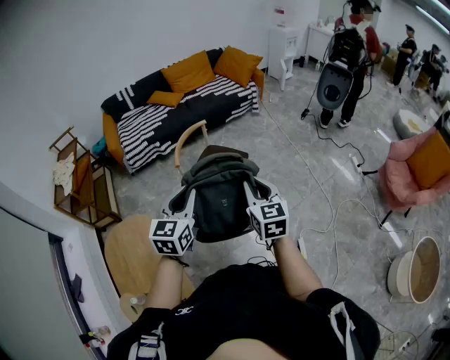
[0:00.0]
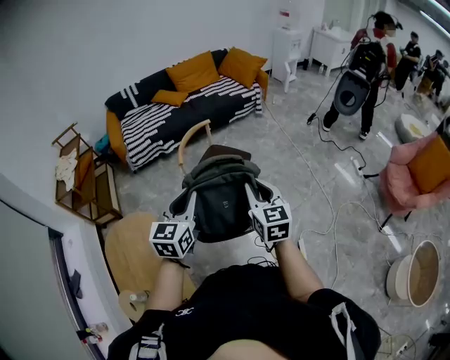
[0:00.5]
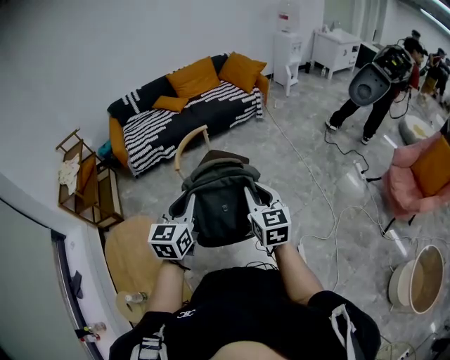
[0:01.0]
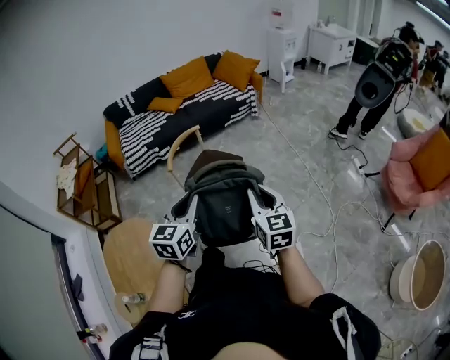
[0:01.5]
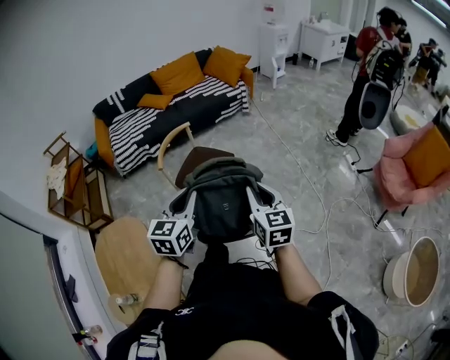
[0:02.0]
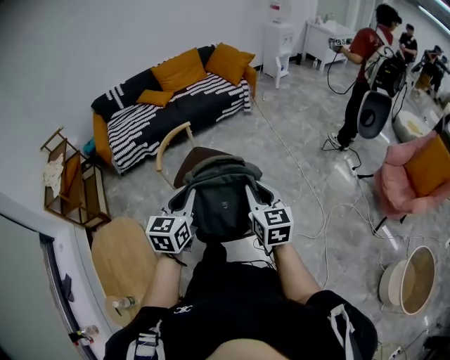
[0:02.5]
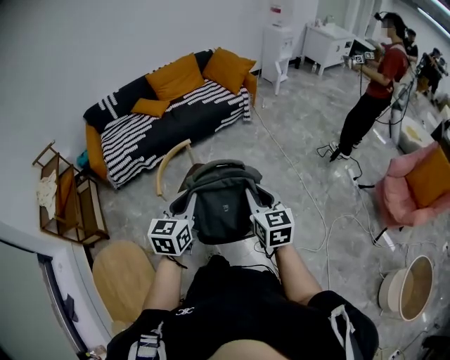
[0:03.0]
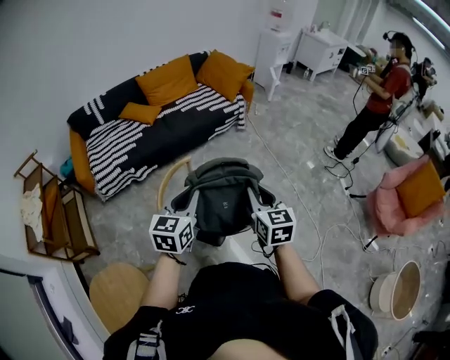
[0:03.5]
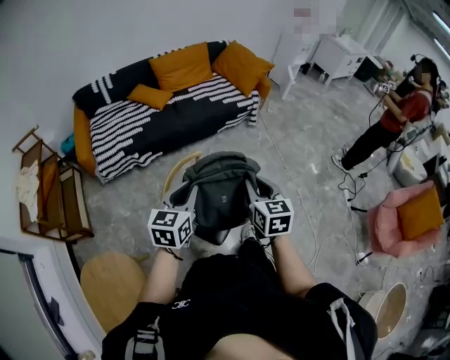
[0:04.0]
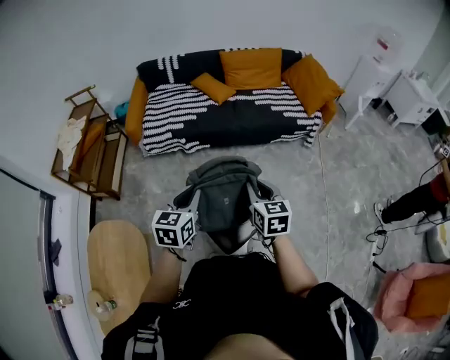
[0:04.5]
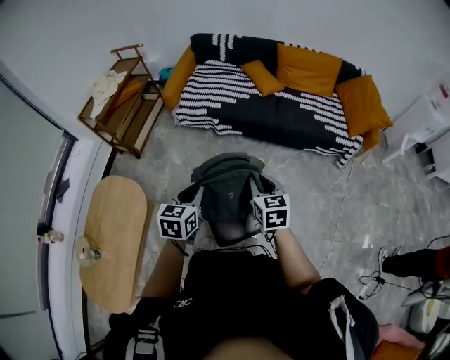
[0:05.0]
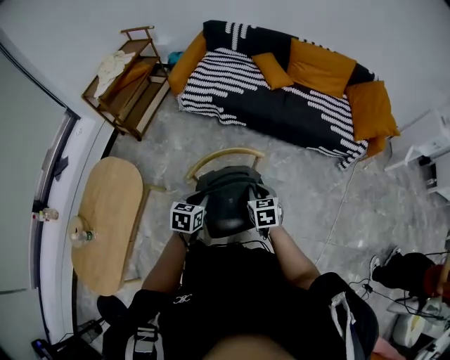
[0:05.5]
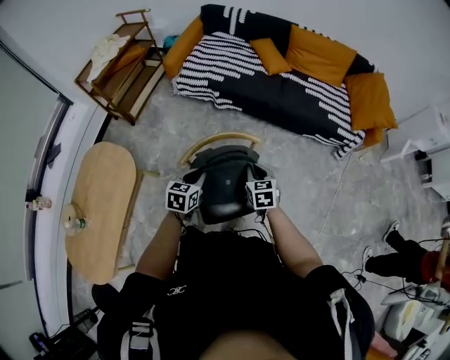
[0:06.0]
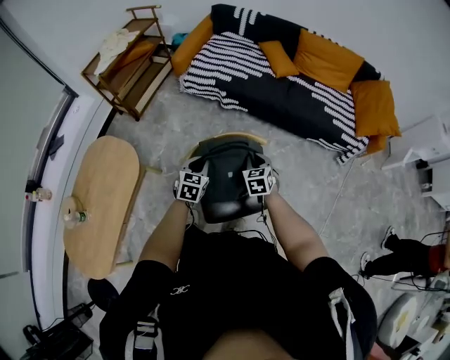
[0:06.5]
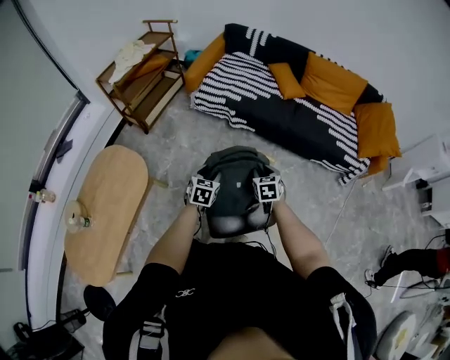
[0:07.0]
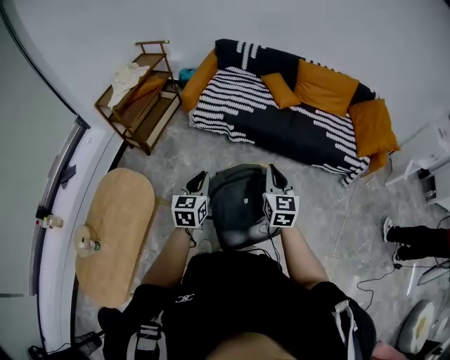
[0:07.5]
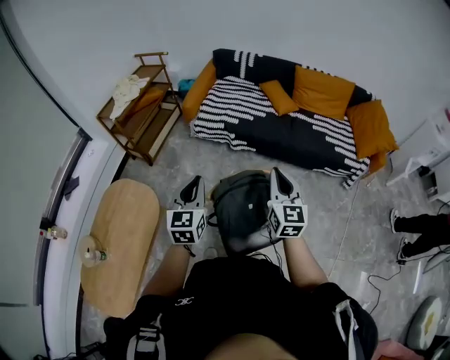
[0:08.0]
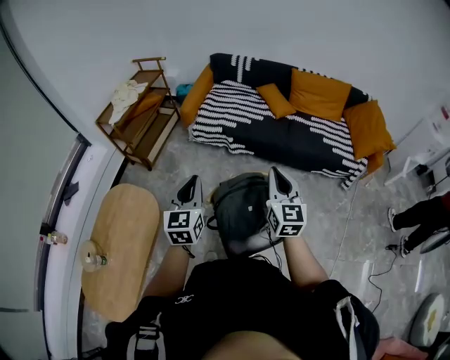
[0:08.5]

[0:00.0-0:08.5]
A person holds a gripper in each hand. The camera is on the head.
0:00.0 to 0:02.0: The grippers both shift to the right by approximately 15 cm.
0:02.0 to 0:04.0: The two grippers travel together, forward and to the left, some 50 cm.
0:04.0 to 0:06.5: The two grippers go roughly 25 cm downward. The right gripper rotates some 50 degrees. The left gripper changes its angle by approximately 50 degrees.
0:06.5 to 0:08.5: Both grippers travel together upward, approximately 30 cm. The left gripper turns by some 30 degrees, and opens and closes again. Meanwhile the right gripper angles its fingers upward, by approximately 40 degrees, and opens and closes again.

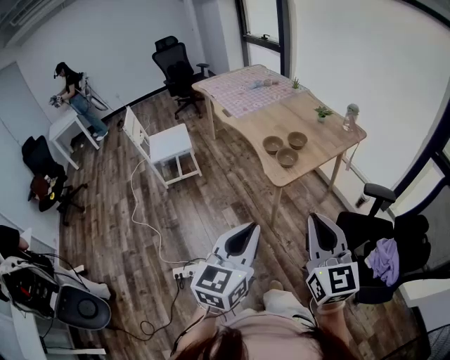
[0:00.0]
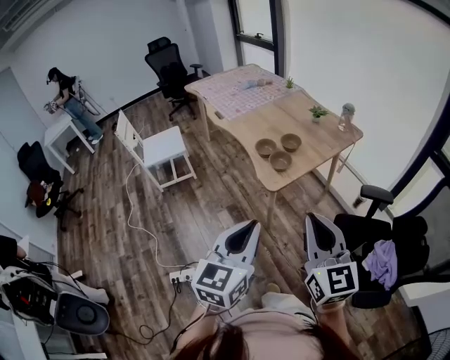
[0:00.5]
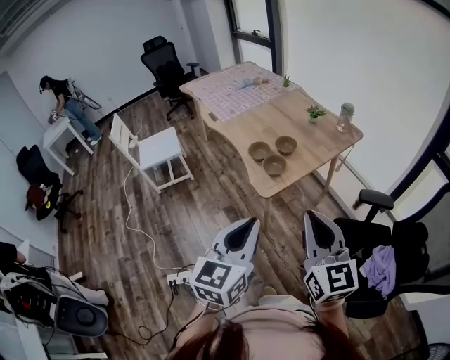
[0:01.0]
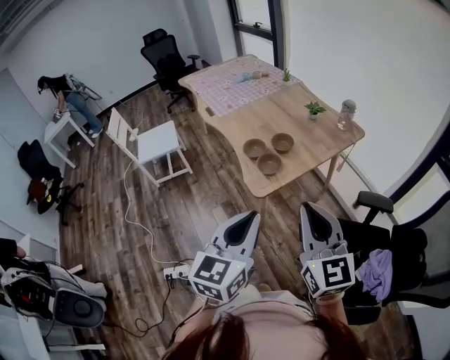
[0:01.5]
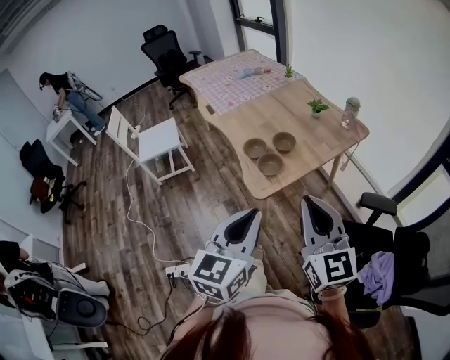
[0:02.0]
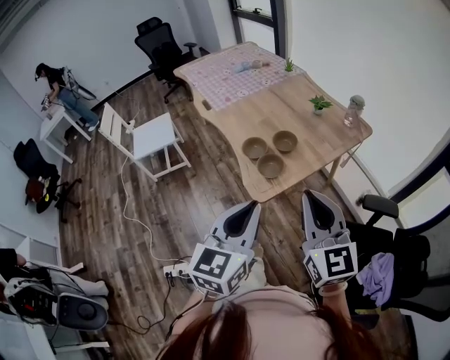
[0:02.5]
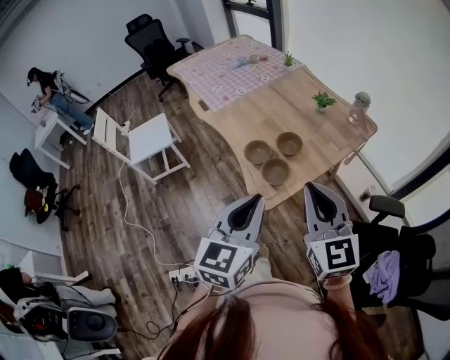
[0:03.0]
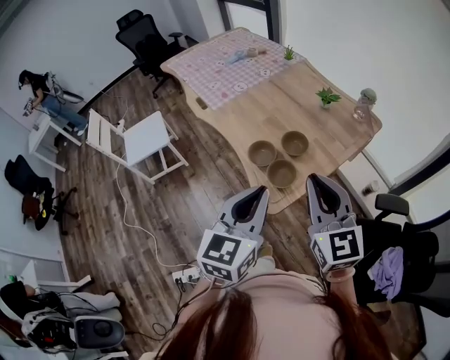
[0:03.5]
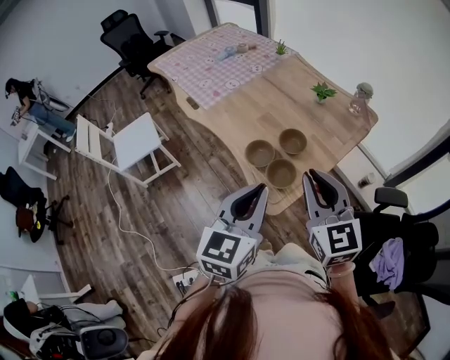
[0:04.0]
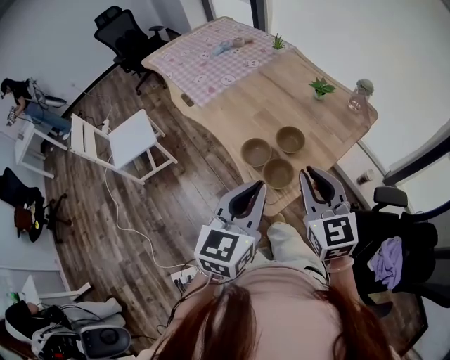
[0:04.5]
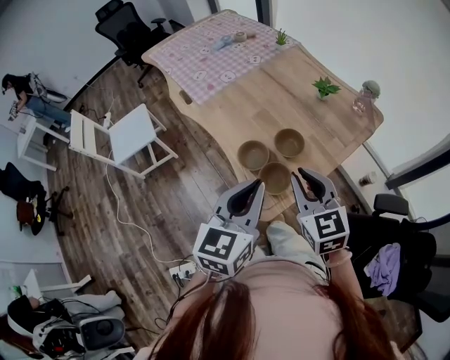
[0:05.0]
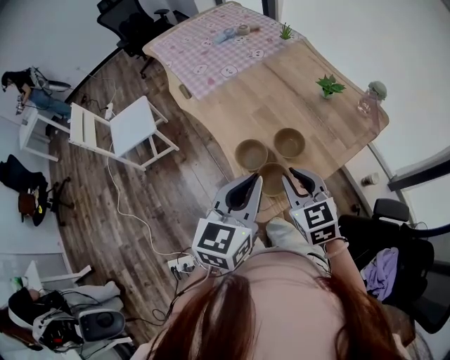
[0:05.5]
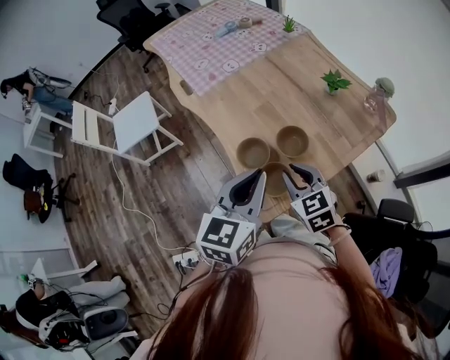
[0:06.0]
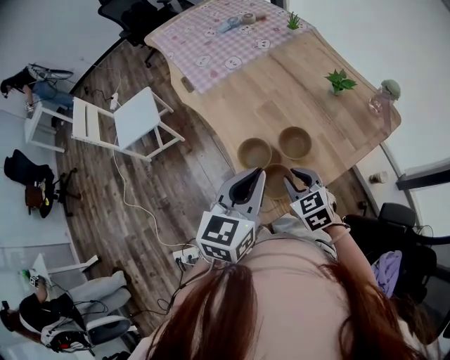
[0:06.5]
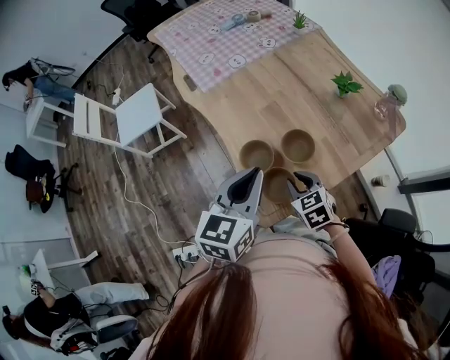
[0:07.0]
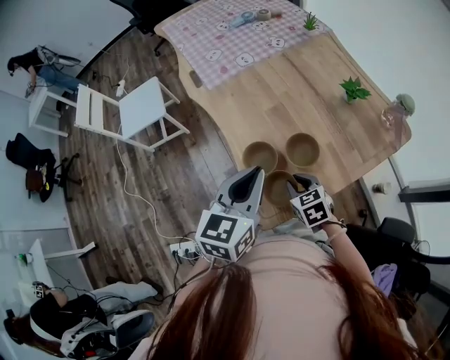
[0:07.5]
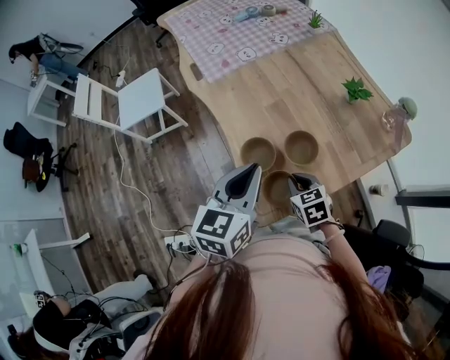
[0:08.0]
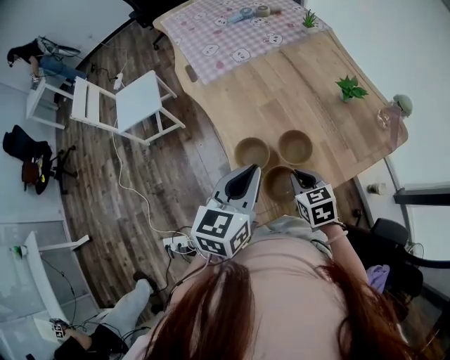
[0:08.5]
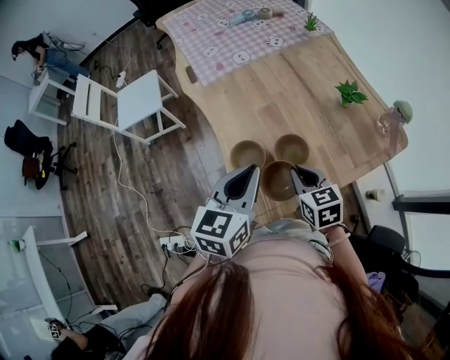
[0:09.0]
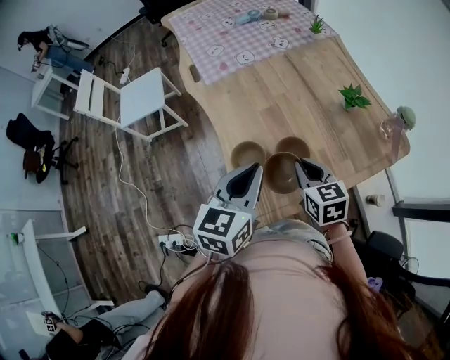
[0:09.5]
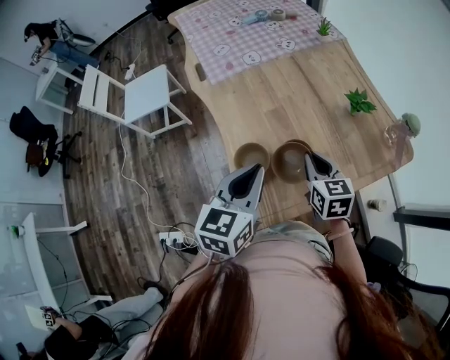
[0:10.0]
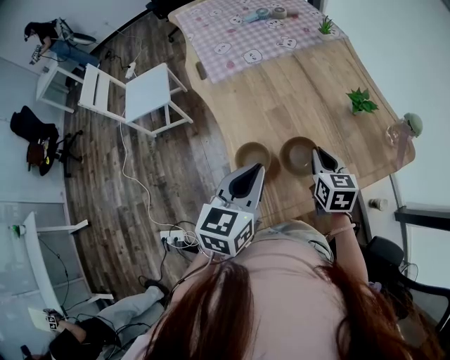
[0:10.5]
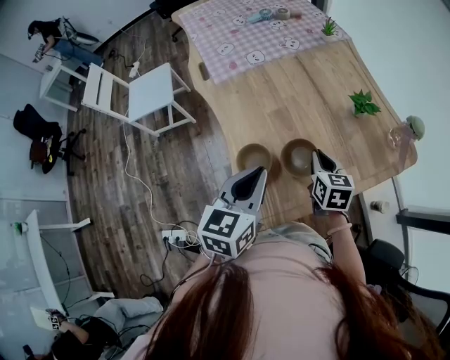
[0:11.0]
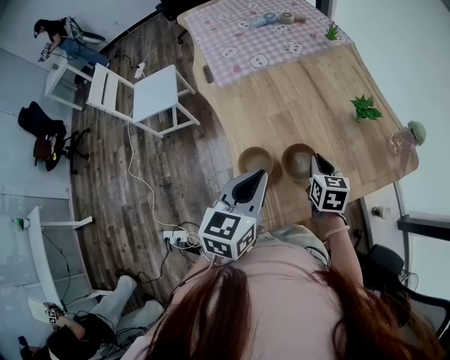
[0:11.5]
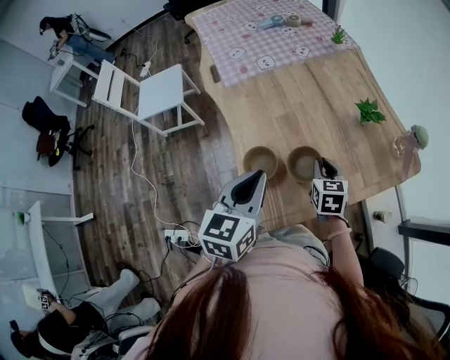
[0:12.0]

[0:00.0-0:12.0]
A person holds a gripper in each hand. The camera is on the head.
0:00.0 to 0:02.0: The grippers both shift forward and to the right by approximately 20 cm.
0:02.0 to 0:04.0: The right gripper is displaced forward and to the left by approximately 25 cm. The left gripper goes about 20 cm forward.
0:04.0 to 0:06.0: The left gripper shifts about 15 cm forward and downward. The right gripper is displaced downward and forward by approximately 20 cm, and rotates some 30 degrees.
0:06.0 to 0:08.0: The right gripper moves downward, approximately 10 cm. The left gripper heads forward, covering about 5 cm.
0:08.0 to 0:10.0: The right gripper is displaced upward, forward and to the right by approximately 15 cm, and changes its angle by approximately 20 degrees.
0:10.0 to 0:12.0: The right gripper shifts roughly 5 cm downward.

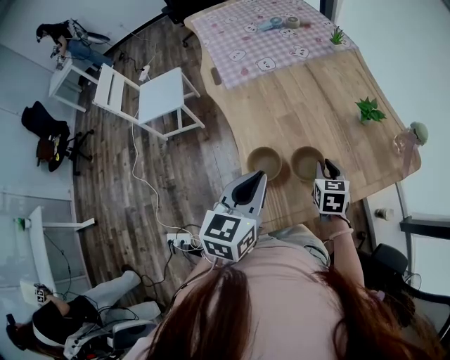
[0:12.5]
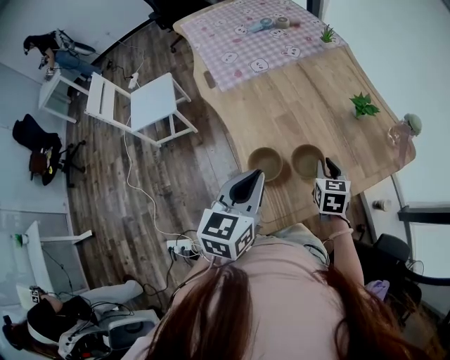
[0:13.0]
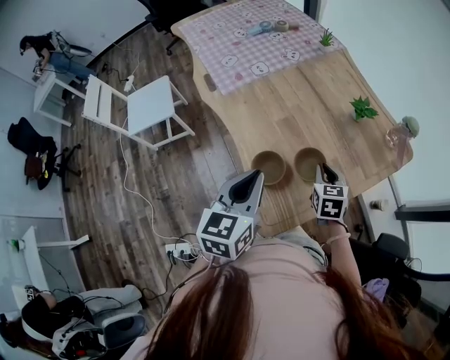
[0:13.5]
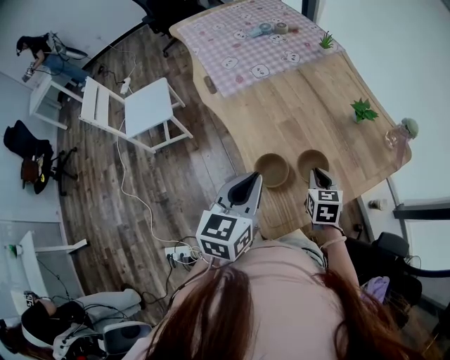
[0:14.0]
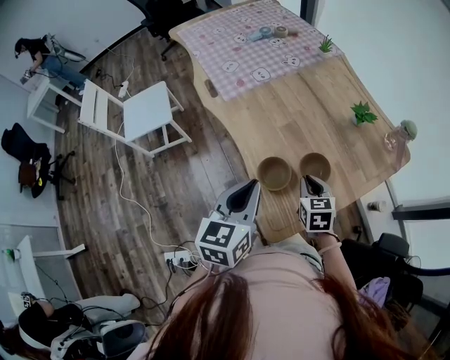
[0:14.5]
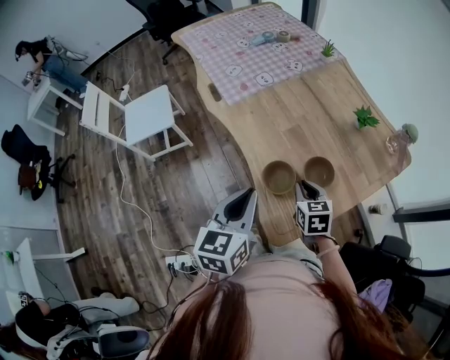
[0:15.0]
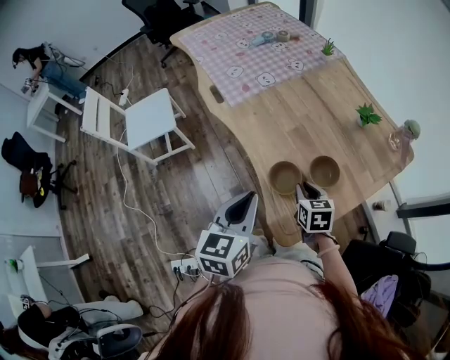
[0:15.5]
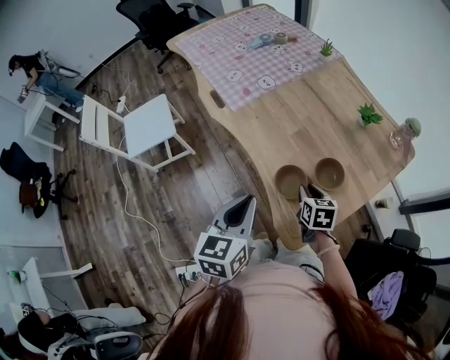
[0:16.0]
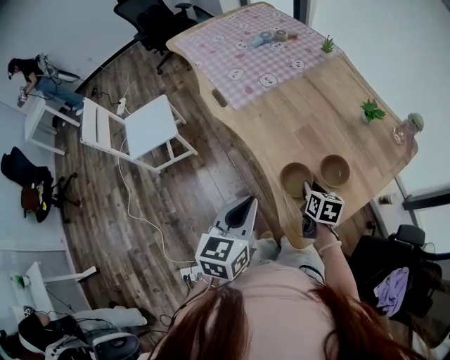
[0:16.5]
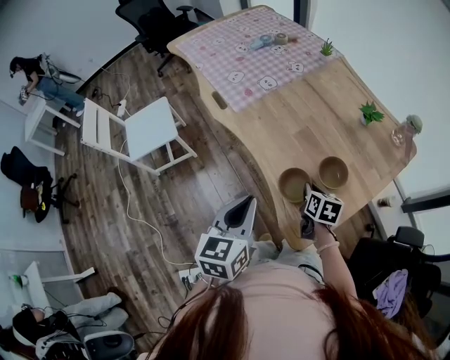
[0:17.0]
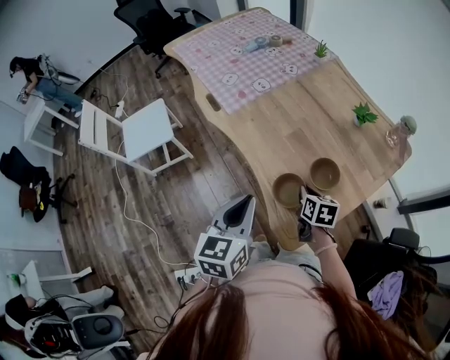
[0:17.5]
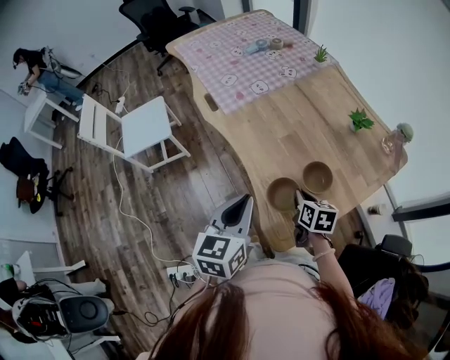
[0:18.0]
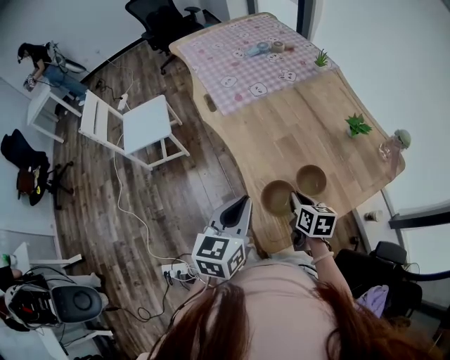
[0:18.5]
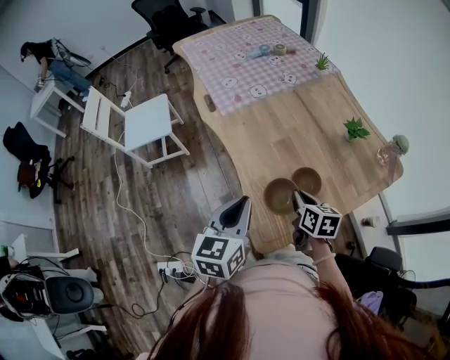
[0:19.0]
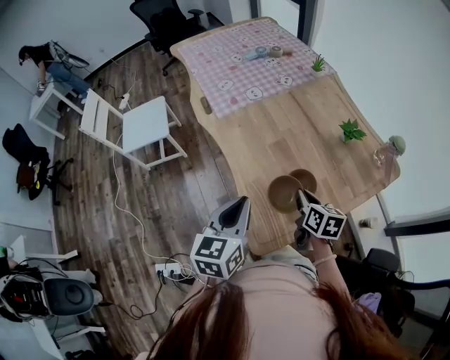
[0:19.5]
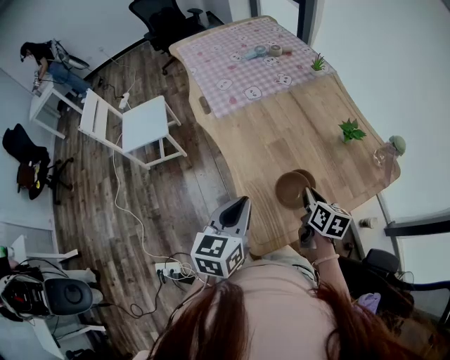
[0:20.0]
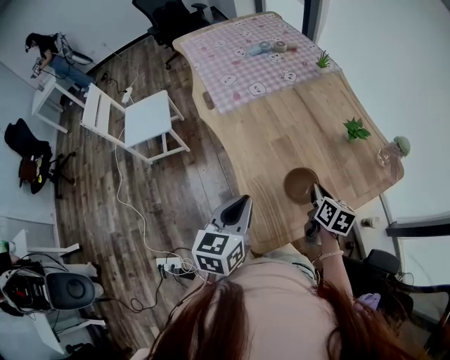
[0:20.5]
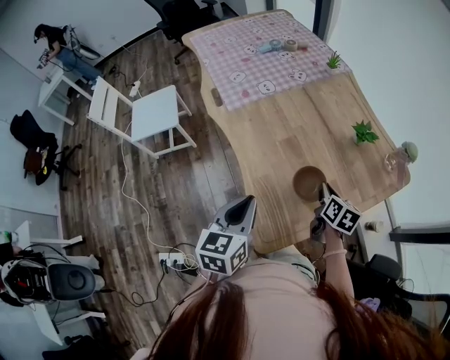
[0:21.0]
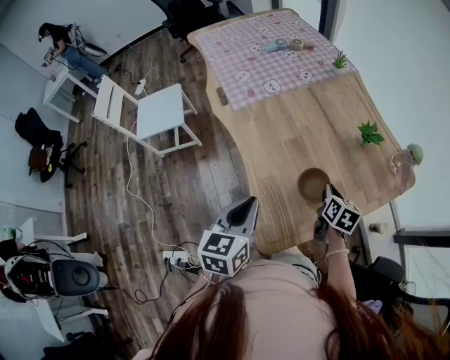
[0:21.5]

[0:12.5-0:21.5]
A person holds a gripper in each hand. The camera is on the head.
0:12.5 to 0:14.5: The left gripper shifts about 10 cm to the left. Meanwhile the right gripper shifts about 10 cm to the left and backward.
0:14.5 to 0:17.0: The left gripper goes some 10 cm to the left; the right gripper goes roughly 5 cm downward, and changes its angle by roughly 30 degrees.
0:17.0 to 0:19.5: The right gripper goes about 10 cm to the right and upward; the left gripper heads to the right, covering approximately 10 cm.
0:19.5 to 0:21.5: The right gripper moves to the right, some 5 cm.
